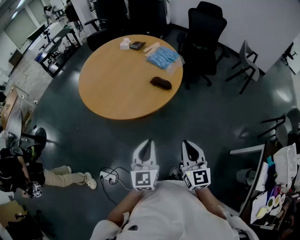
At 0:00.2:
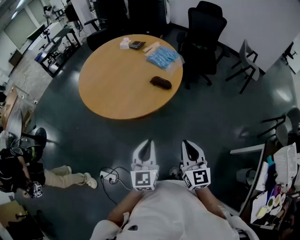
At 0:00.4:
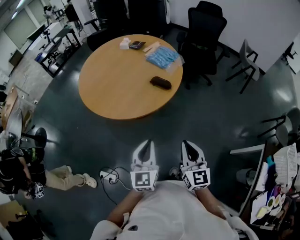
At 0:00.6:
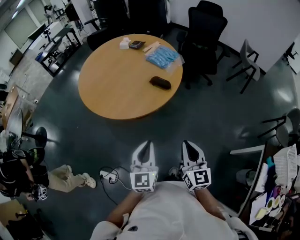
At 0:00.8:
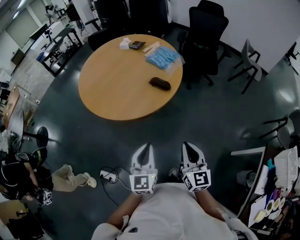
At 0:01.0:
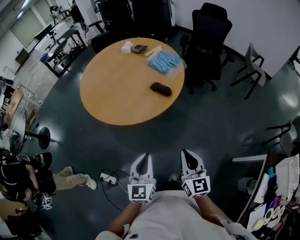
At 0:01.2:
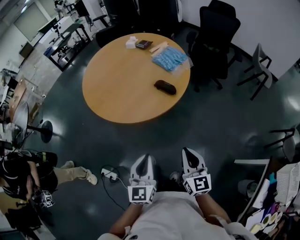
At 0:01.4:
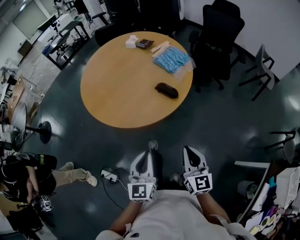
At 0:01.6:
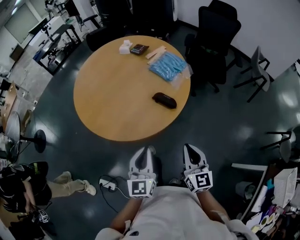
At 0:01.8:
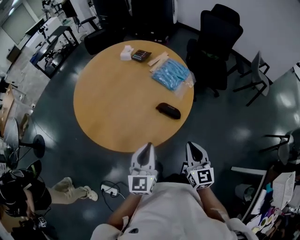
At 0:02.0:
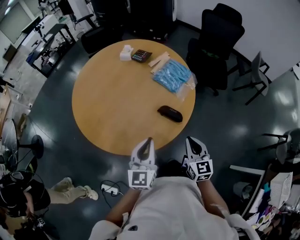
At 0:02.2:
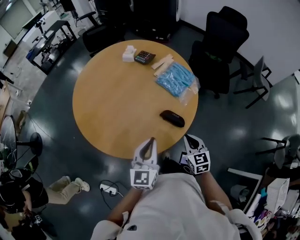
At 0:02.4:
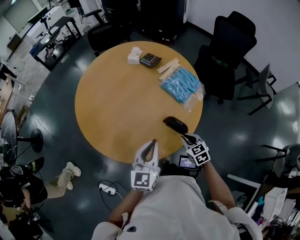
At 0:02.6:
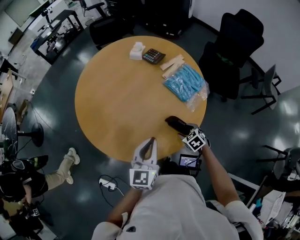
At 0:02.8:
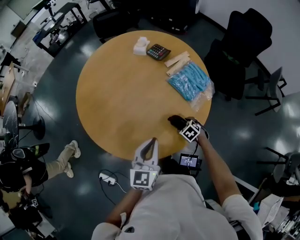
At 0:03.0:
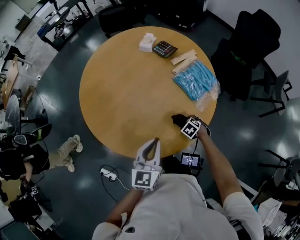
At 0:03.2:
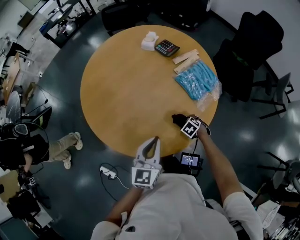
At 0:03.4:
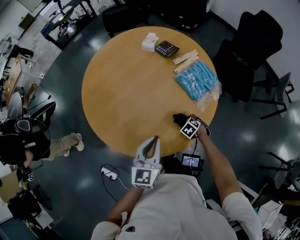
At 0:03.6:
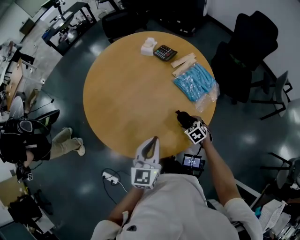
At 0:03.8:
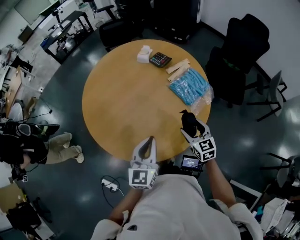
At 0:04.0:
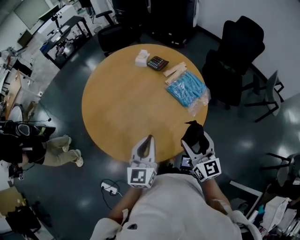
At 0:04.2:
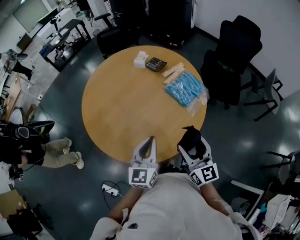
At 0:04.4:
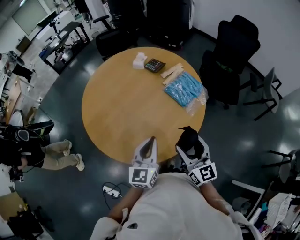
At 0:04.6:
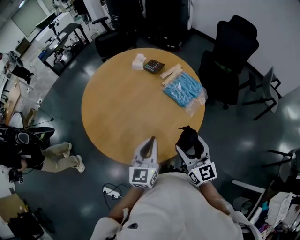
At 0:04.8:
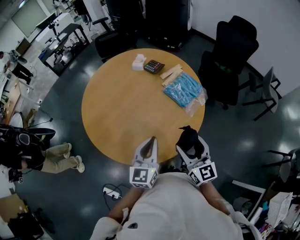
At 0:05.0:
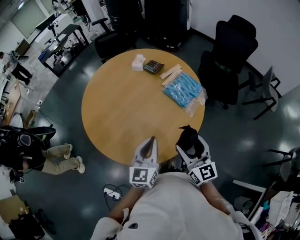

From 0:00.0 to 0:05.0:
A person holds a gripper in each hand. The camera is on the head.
From 0:00.0 to 0:01.6: Both grippers travel together forward, approximately 15 cm.
From 0:01.6 to 0:03.4: The left gripper moves some 25 cm; the right gripper travels downward by some 30 cm, angles its fingers downward, by about 70 degrees, and opens its fingers.
From 0:03.4 to 0:05.0: The right gripper is displaced upward by roughly 35 cm, and tilts its fingers some 70 degrees upward. Meanwhile the left gripper moves about 5 cm.

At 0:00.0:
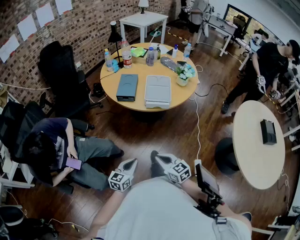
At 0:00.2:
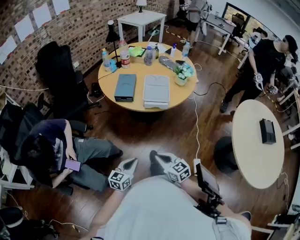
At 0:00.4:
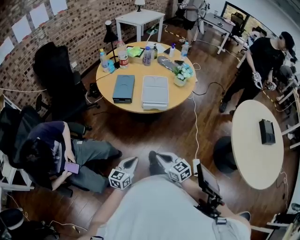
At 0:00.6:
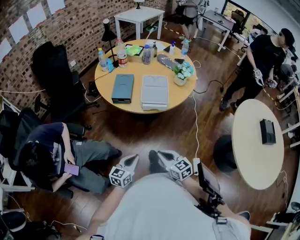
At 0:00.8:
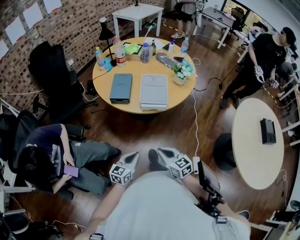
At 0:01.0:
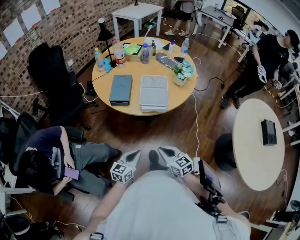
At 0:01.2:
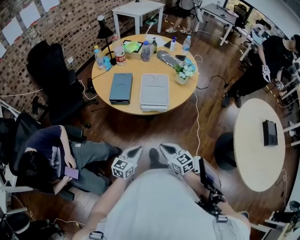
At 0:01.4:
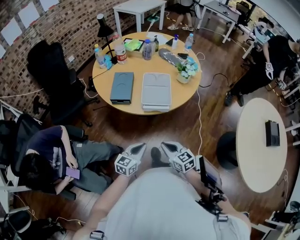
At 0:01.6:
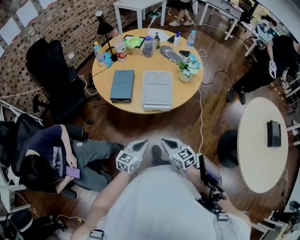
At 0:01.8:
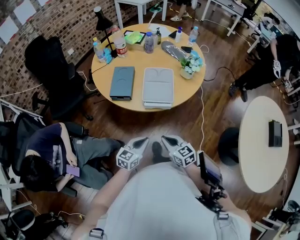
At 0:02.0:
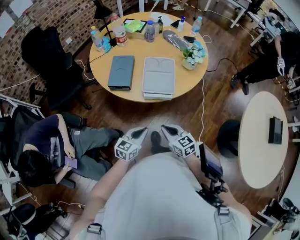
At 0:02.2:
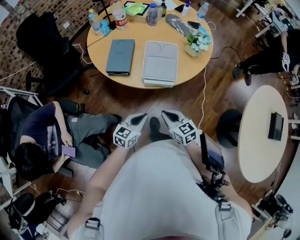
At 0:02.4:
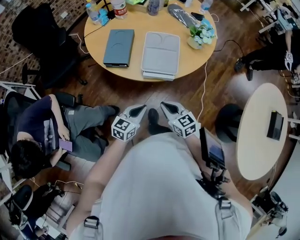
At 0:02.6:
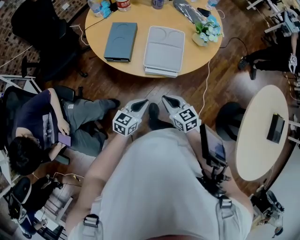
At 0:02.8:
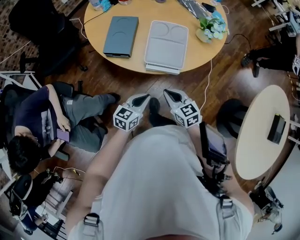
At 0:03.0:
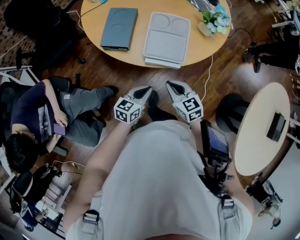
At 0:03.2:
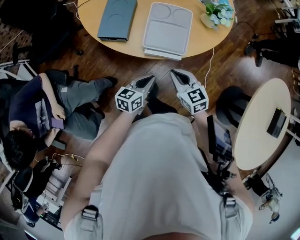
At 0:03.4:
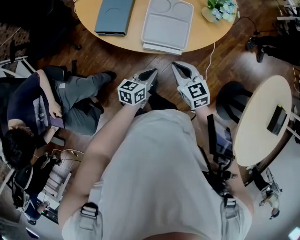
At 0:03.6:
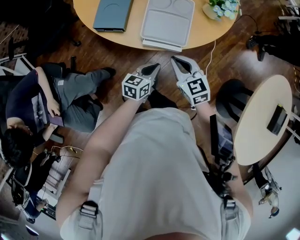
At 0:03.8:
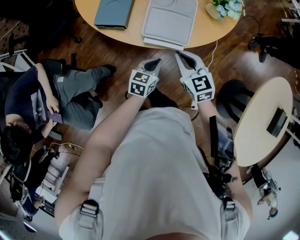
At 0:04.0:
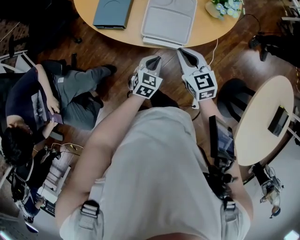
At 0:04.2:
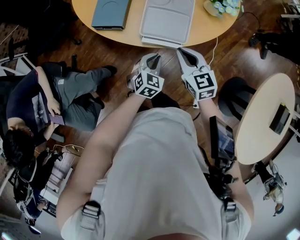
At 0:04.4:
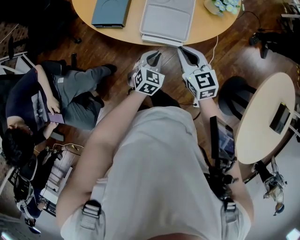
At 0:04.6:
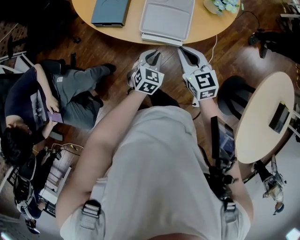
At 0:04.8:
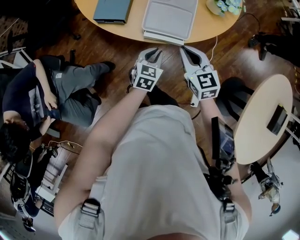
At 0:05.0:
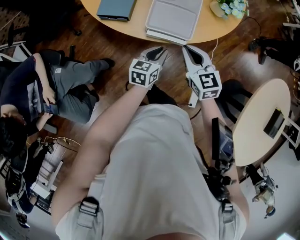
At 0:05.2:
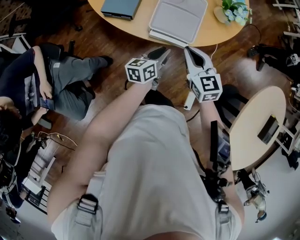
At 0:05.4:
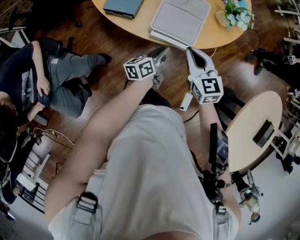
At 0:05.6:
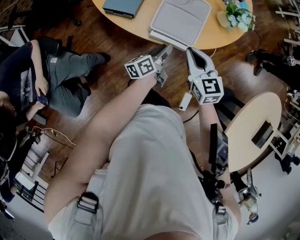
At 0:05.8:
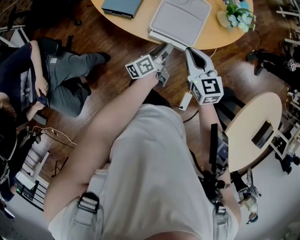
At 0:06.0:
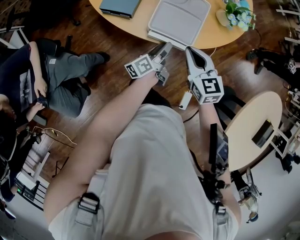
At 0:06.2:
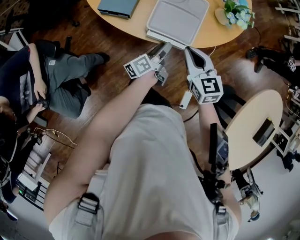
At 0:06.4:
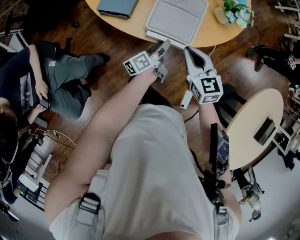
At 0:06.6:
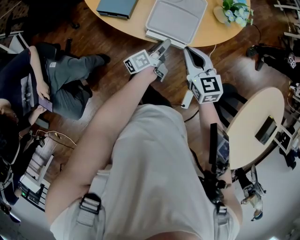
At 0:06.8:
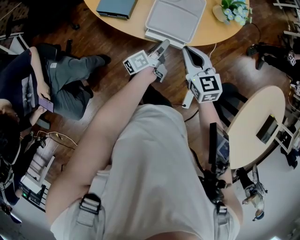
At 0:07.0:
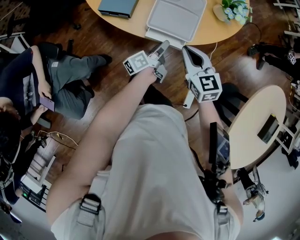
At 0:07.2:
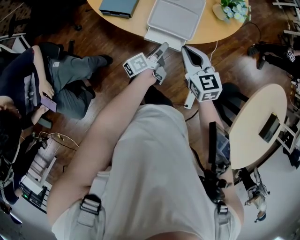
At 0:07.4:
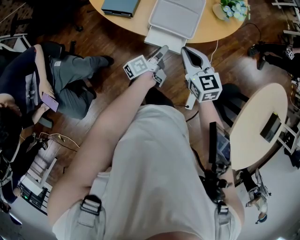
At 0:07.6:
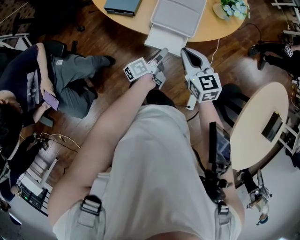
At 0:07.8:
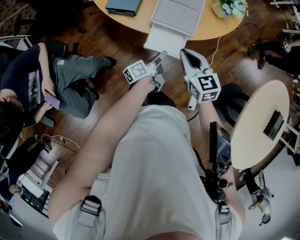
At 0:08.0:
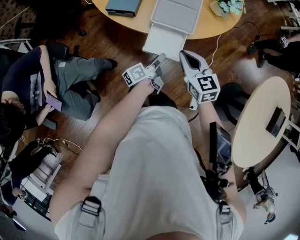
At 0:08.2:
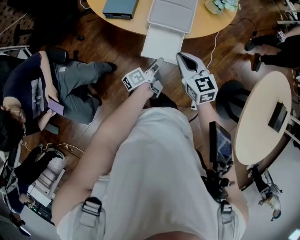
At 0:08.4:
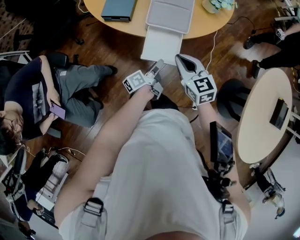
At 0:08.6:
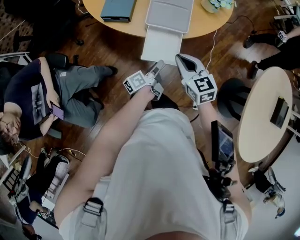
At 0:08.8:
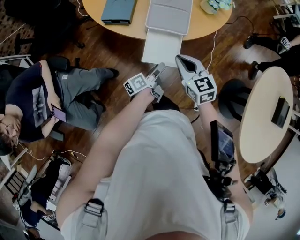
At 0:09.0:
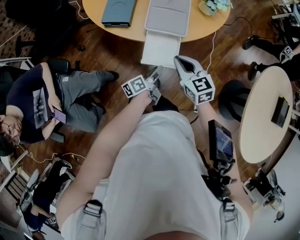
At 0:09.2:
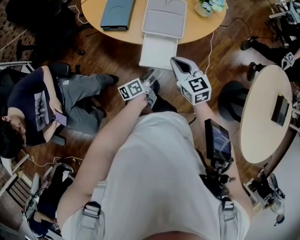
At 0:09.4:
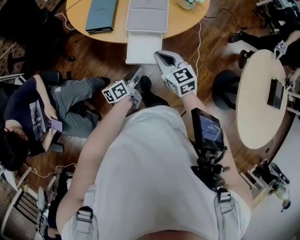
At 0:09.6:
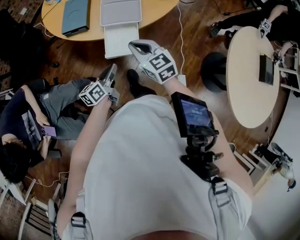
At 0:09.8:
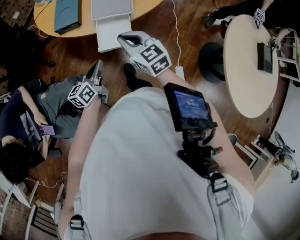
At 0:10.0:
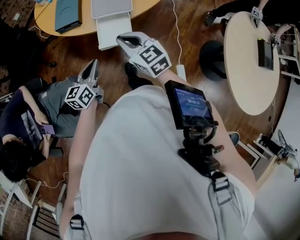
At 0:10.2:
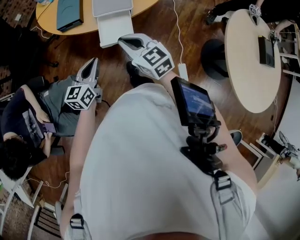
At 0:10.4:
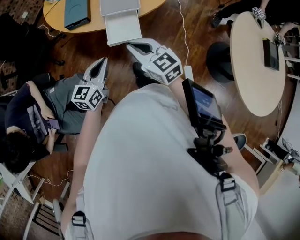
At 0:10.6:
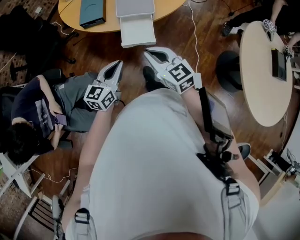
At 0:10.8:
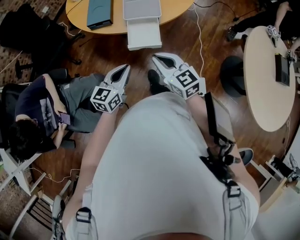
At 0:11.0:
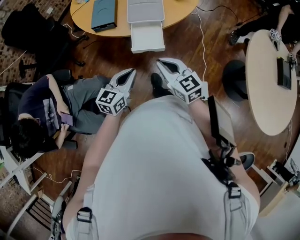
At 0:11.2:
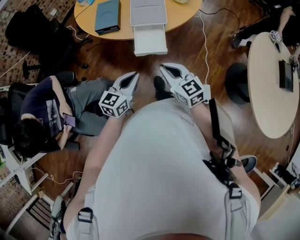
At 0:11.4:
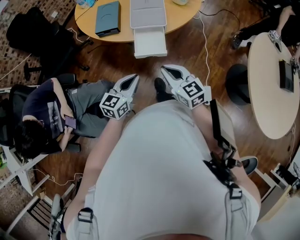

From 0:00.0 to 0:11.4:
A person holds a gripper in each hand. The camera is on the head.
From 0:00.0 to 0:01.4: The right gripper shifts some 15 cm forward. The left gripper goes roughly 15 cm forward and to the right.
From 0:01.4 to 0:02.8: The right gripper shifts about 15 cm forward, while the left gripper travels forward and downward by approximately 10 cm.
From 0:02.8 to 0:04.2: The left gripper moves forward and downward, about 10 cm, and rotates about 30 degrees, while the right gripper heads forward, covering about 10 cm.
From 0:04.2 to 0:05.6: The left gripper rotates around the line of its fingers by approximately 80 degrees, counterclockwise from behind, and opens.
From 0:05.6 to 0:07.2: The grippers make only small movements.
From 0:07.2 to 0:08.6: Both grippers travel together backward, about 10 cm.
From 0:08.6 to 0:10.0: The left gripper moves to the left and upward, roughly 10 cm, rotates around the line of its fingers by approximately 50 degrees, clockwise from behind, and closes.
From 0:10.0 to 0:11.4: The two grippers go approximately 10 cm backward.

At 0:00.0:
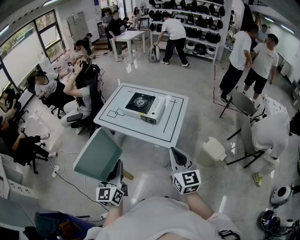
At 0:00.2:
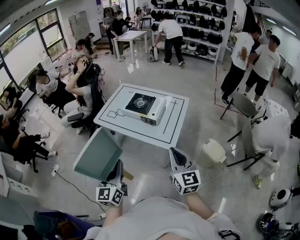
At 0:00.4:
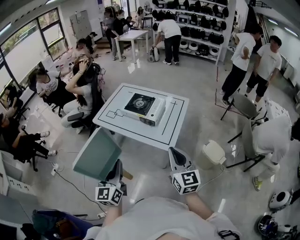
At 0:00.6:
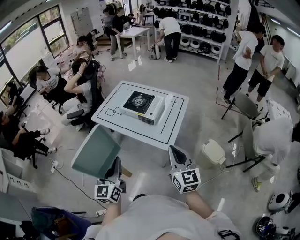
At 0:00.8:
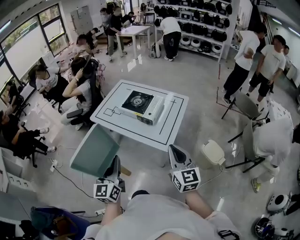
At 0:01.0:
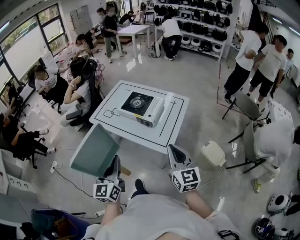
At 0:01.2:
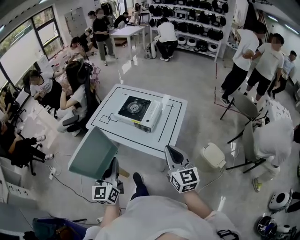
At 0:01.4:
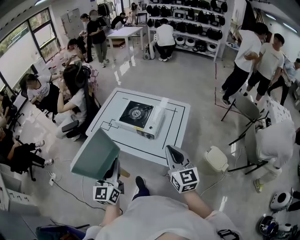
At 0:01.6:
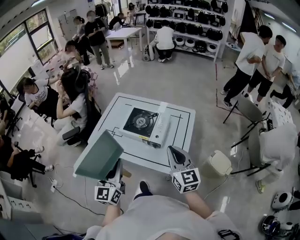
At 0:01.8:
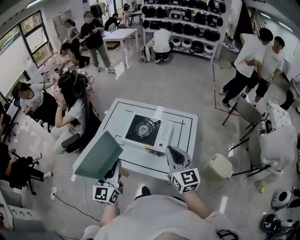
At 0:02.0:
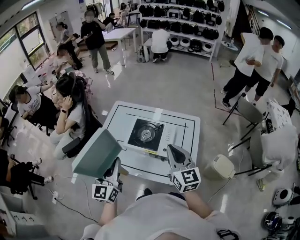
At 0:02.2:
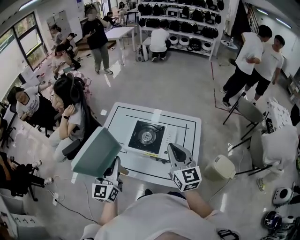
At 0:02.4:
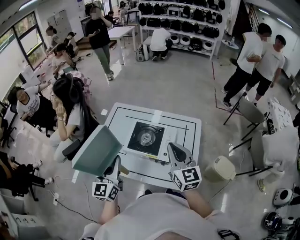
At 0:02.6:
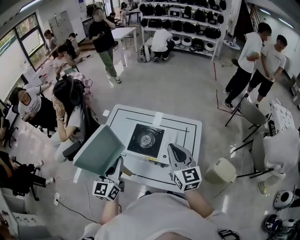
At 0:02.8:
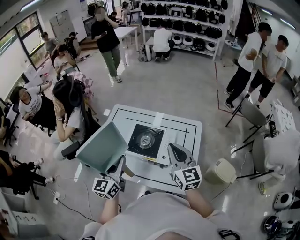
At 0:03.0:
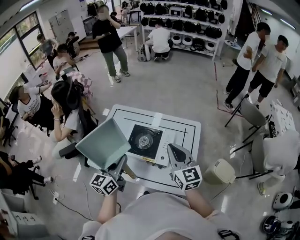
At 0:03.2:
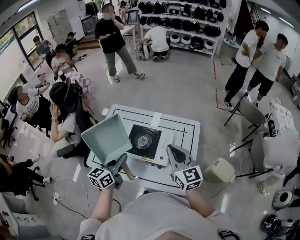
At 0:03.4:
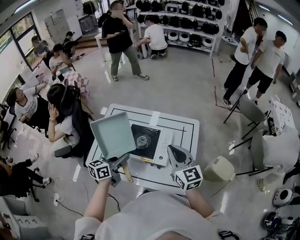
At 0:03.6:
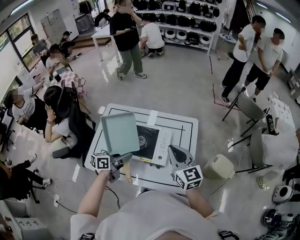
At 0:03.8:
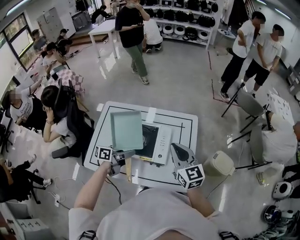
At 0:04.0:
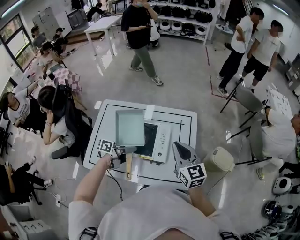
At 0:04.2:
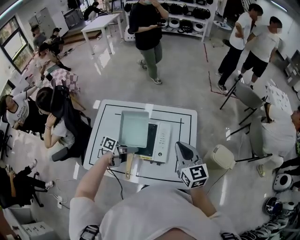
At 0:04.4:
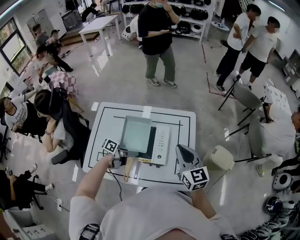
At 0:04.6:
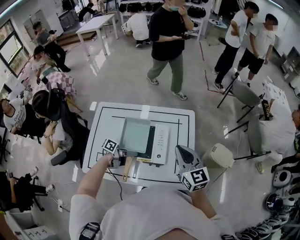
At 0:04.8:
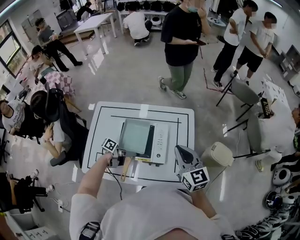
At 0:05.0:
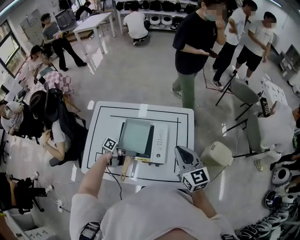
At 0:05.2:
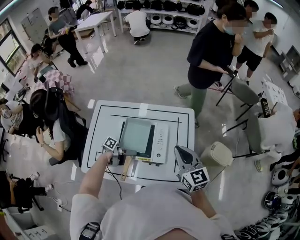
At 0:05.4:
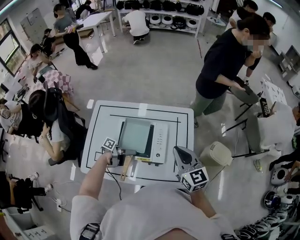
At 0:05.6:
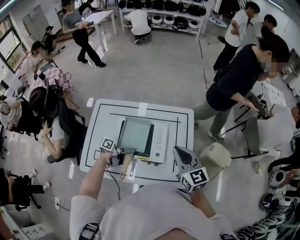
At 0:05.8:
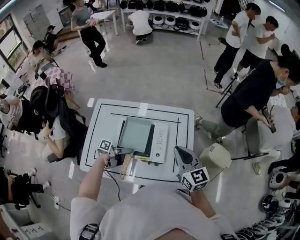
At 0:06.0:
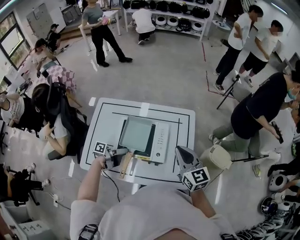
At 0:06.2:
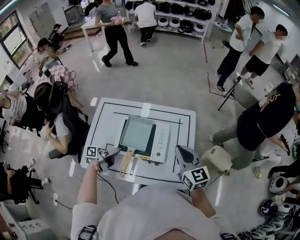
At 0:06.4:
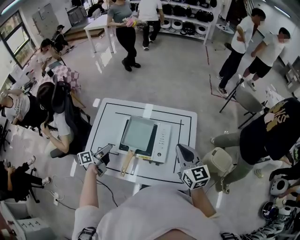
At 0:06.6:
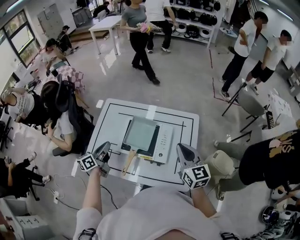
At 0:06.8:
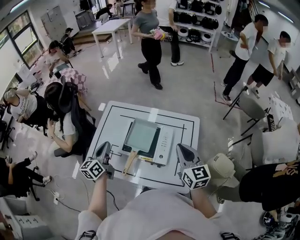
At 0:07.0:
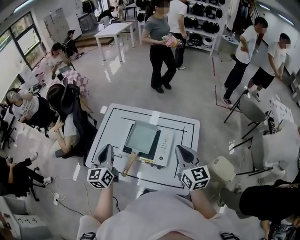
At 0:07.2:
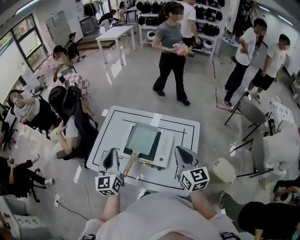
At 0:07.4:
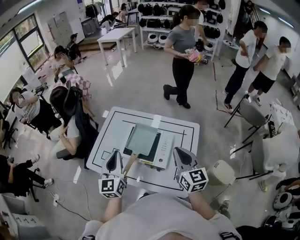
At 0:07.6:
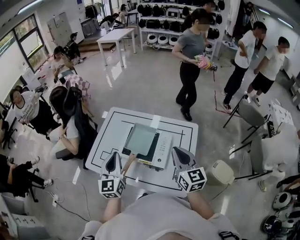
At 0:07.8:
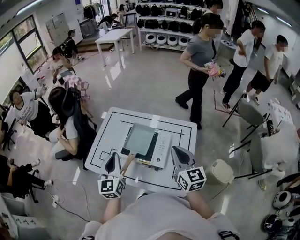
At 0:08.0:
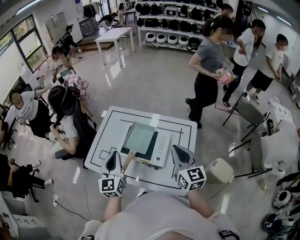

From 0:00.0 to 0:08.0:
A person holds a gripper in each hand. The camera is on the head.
From 0:00.0 to 0:01.6: Both grippers travel together forward, approximately 25 cm.
From 0:01.6 to 0:03.2: The two grippers go roughly 20 cm forward. The left gripper swivels roughly 30 degrees.
From 0:03.2 to 0:04.8: The left gripper heads downward, covering approximately 20 cm, and swivels approximately 80 degrees; the right gripper changes place by roughly 5 cm.
From 0:04.8 to 0:06.4: The left gripper ends up about 15 cm from where it was, and swivels some 50 degrees.
From 0:06.4 to 0:08.0: The left gripper goes some 20 cm upward and backward, twists some 60 degrees clockwise, seen from behind, and closes its fingers.
